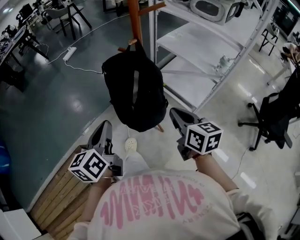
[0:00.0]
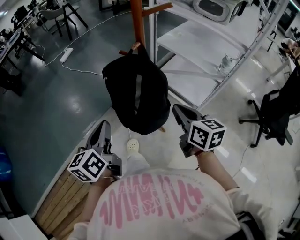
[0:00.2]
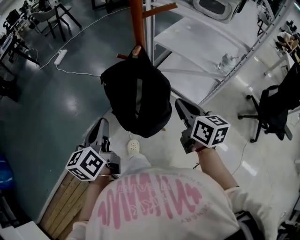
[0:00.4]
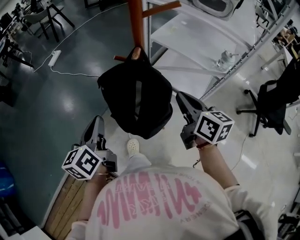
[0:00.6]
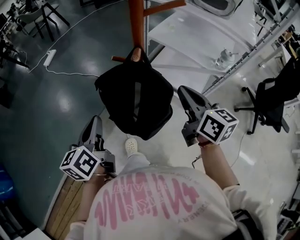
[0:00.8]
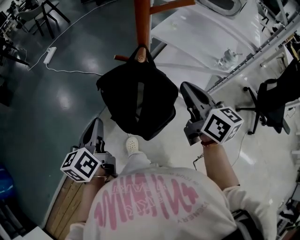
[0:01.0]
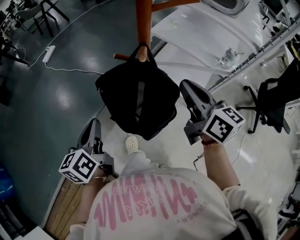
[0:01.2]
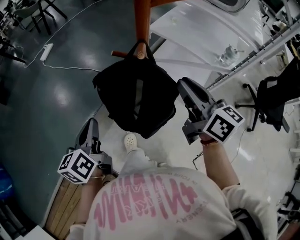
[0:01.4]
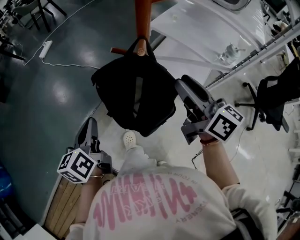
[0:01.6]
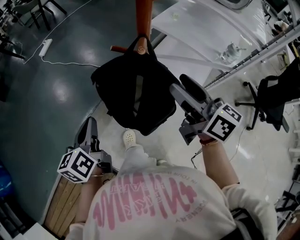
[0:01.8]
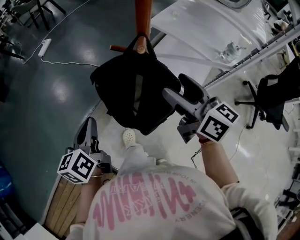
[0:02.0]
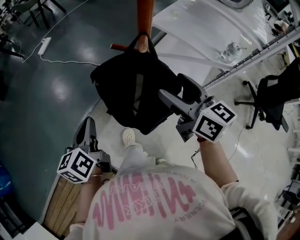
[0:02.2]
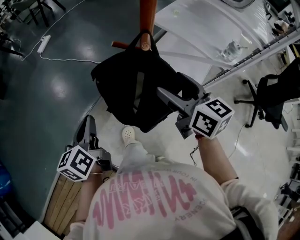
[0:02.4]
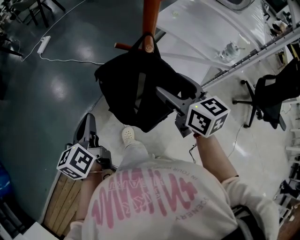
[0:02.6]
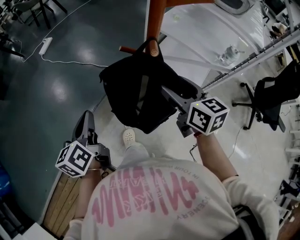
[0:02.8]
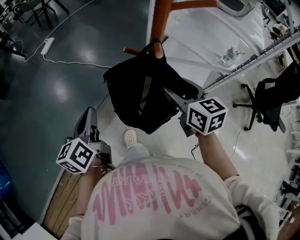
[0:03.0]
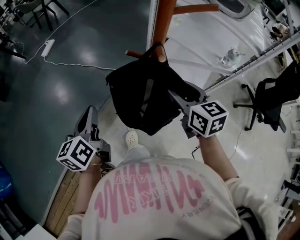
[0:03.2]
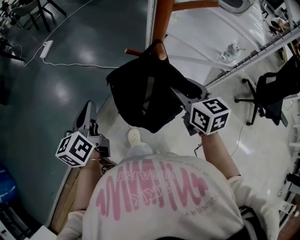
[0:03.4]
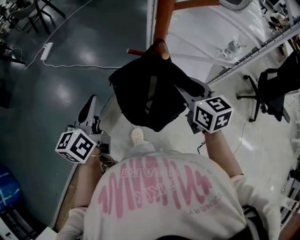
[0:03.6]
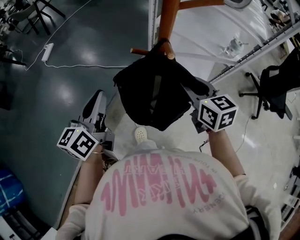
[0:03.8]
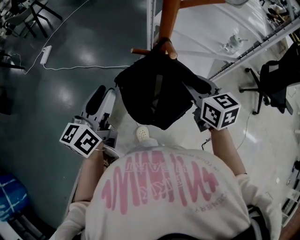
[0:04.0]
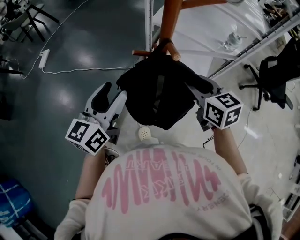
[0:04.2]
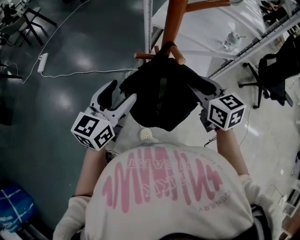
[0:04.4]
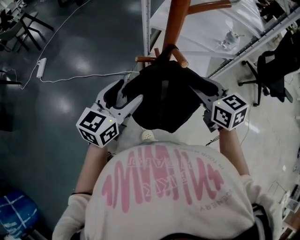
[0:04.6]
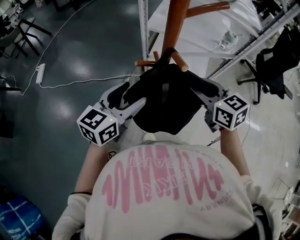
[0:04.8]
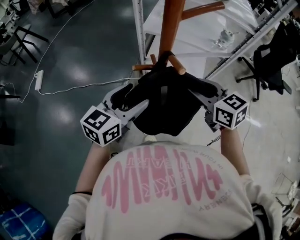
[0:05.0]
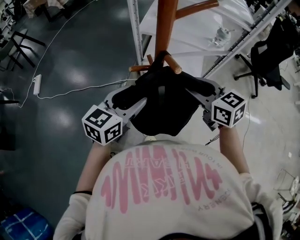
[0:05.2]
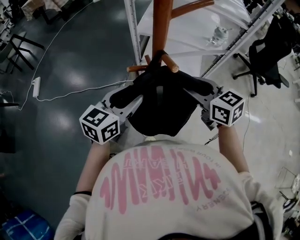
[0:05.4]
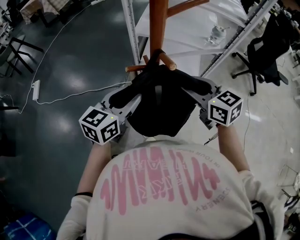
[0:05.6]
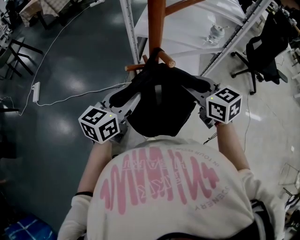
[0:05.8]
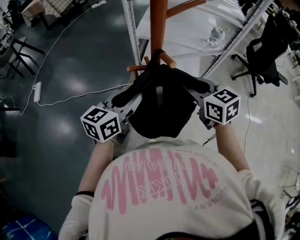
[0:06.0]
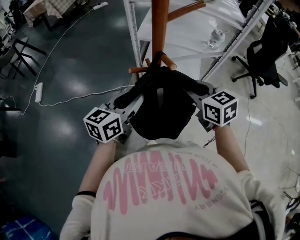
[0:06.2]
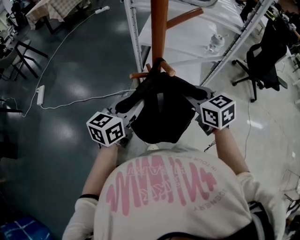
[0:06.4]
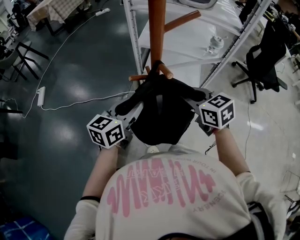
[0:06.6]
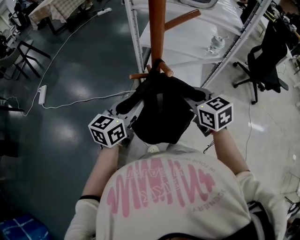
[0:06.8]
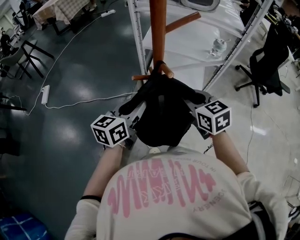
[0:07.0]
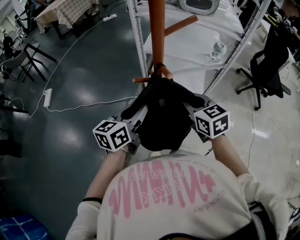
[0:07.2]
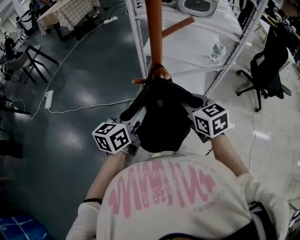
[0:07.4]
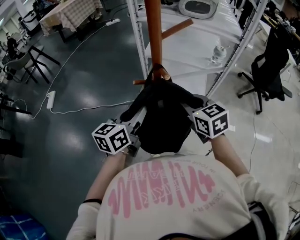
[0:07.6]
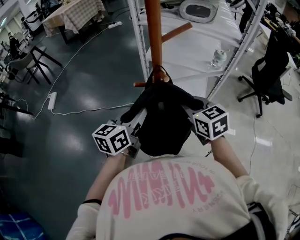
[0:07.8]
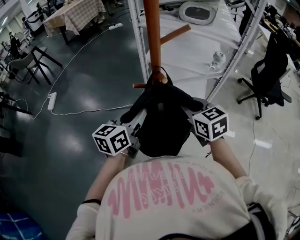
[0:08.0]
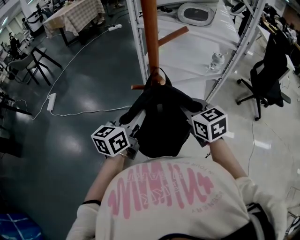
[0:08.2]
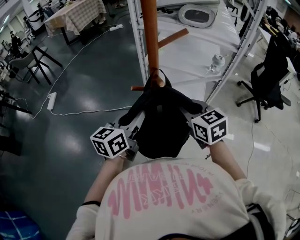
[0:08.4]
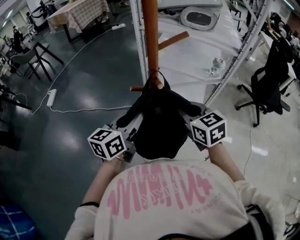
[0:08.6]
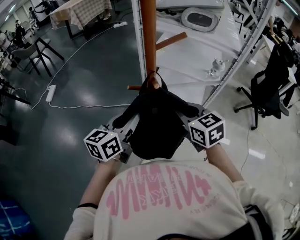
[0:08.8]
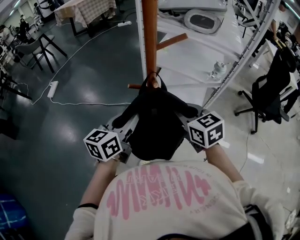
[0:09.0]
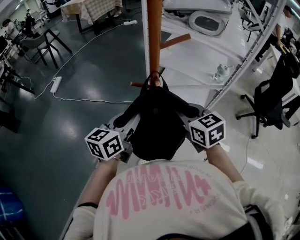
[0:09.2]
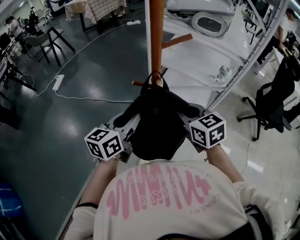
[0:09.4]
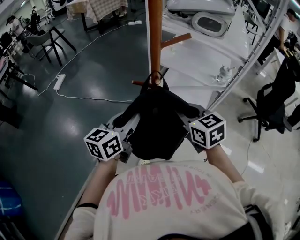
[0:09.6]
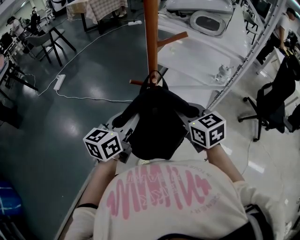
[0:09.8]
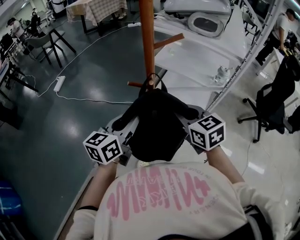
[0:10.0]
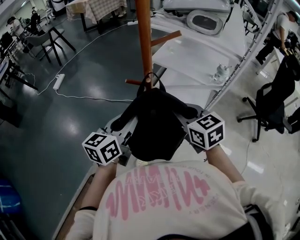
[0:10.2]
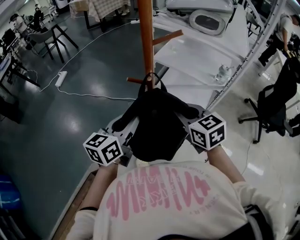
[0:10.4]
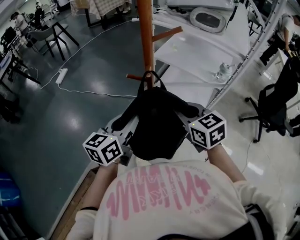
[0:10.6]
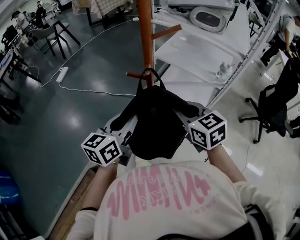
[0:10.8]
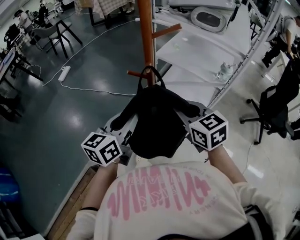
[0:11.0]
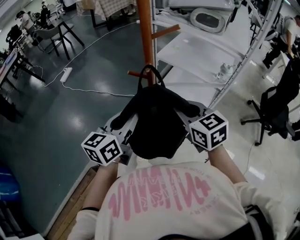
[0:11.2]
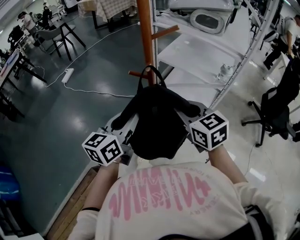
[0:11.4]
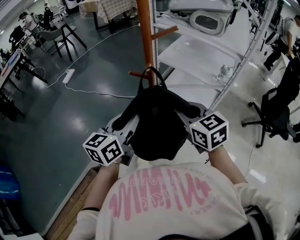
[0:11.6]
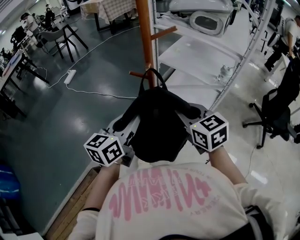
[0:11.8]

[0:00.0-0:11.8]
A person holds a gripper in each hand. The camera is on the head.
0:00.0 to 0:01.4: The left gripper shifts roughly 15 cm forward and to the left, while the right gripper goes some 15 cm forward and upward.
0:01.4 to 0:03.0: The right gripper goes some 5 cm downward, swivels some 20 degrees, and opens up.
0:03.0 to 0:04.4: The left gripper goes some 10 cm forward and to the right, changes its angle by some 50 degrees, and opens its fingers; the right gripper closes.
0:04.4 to 0:06.0: The left gripper changes place by roughly 5 cm, and closes up.
0:06.0 to 0:07.4: There are only small adjustments of the grippers.
0:07.4 to 0:08.8: The grippers move only a little.
0:08.8 to 0:10.4: The left gripper moves backward, roughly 5 cm.
0:10.4 to 0:11.8: The right gripper moves some 5 cm. The left gripper travels backward by some 5 cm.

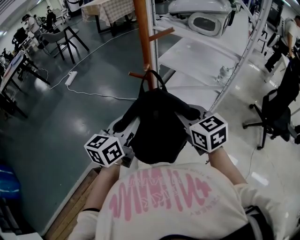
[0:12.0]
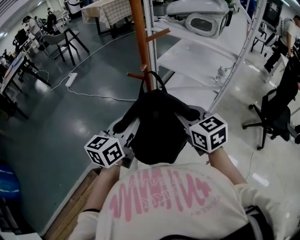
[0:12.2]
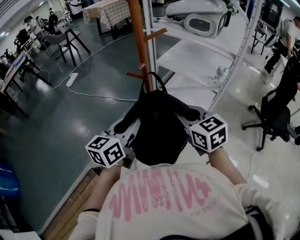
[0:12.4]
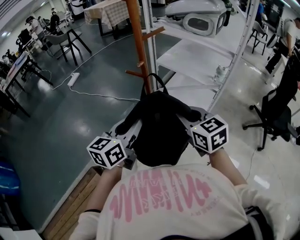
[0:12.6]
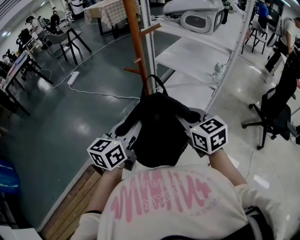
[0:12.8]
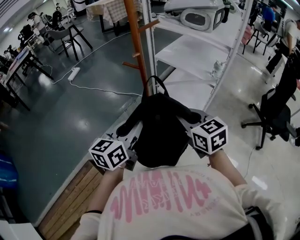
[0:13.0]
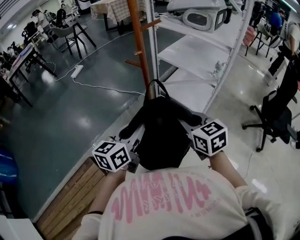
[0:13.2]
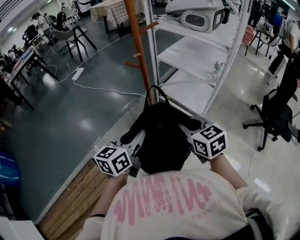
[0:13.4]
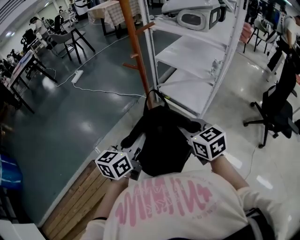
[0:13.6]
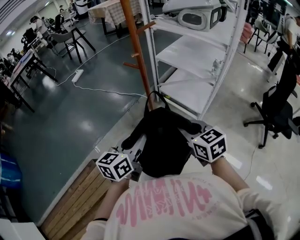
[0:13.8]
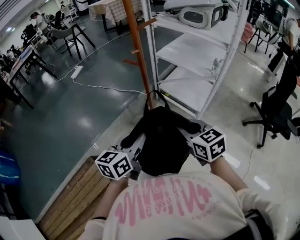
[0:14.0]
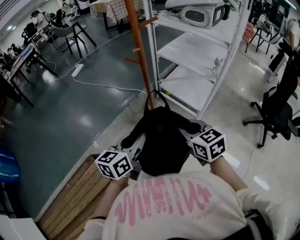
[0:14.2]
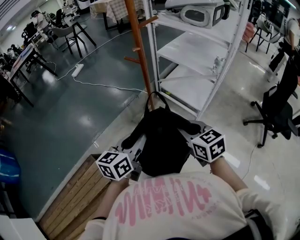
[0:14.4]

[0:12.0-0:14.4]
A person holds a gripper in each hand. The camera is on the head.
0:12.0 to 0:13.2: Both grippers travel together backward and to the right, approximately 10 cm.
0:13.2 to 0:14.4: The grippers both shift backward by some 5 cm.

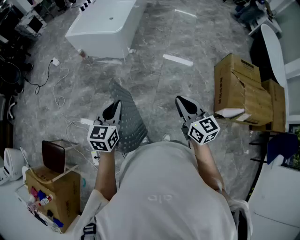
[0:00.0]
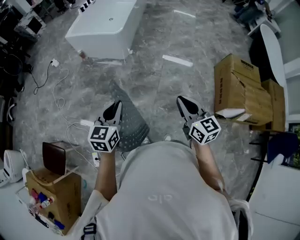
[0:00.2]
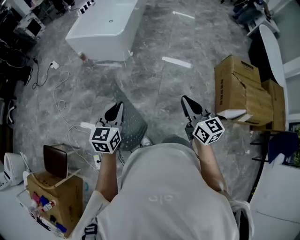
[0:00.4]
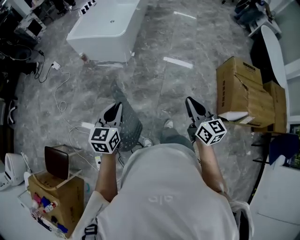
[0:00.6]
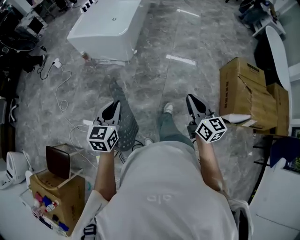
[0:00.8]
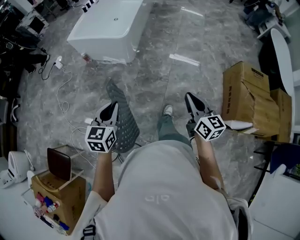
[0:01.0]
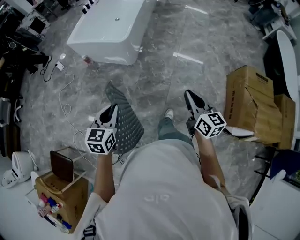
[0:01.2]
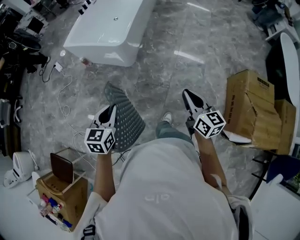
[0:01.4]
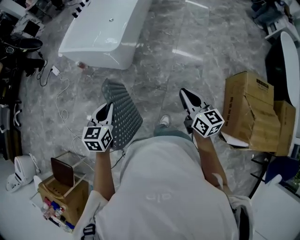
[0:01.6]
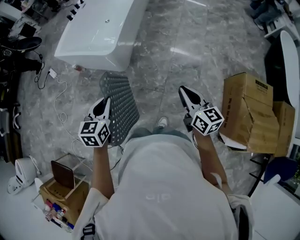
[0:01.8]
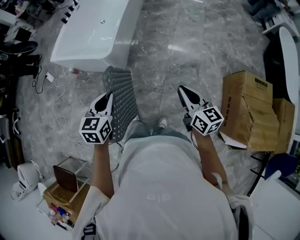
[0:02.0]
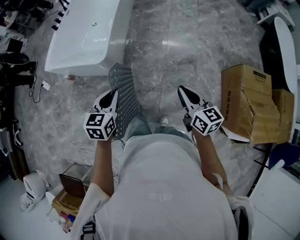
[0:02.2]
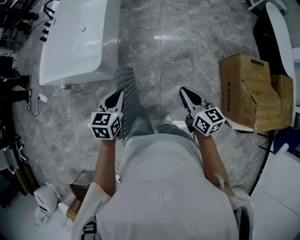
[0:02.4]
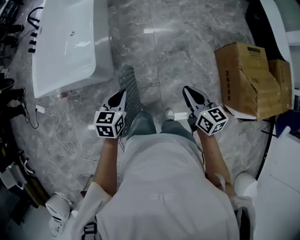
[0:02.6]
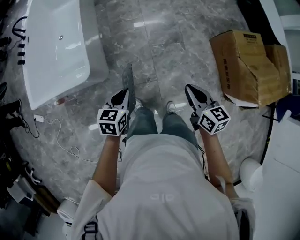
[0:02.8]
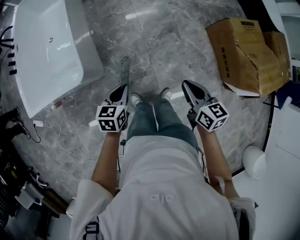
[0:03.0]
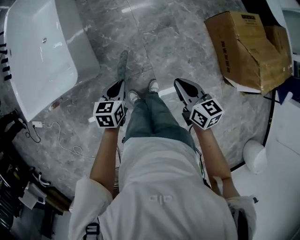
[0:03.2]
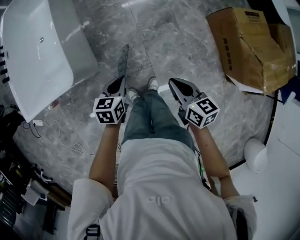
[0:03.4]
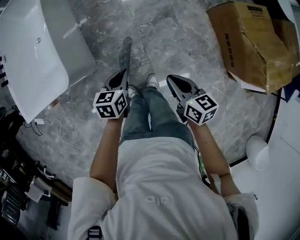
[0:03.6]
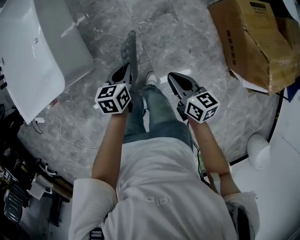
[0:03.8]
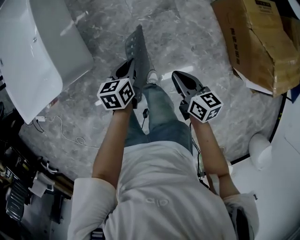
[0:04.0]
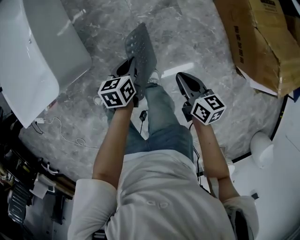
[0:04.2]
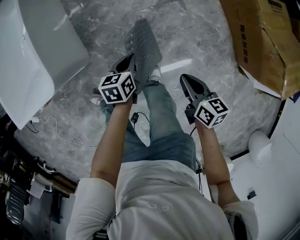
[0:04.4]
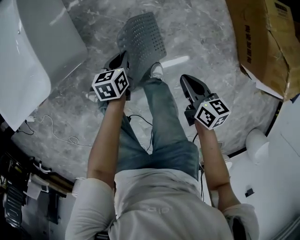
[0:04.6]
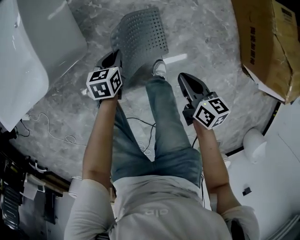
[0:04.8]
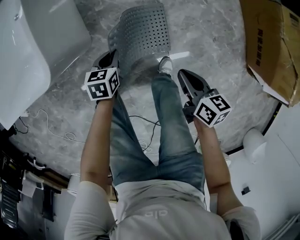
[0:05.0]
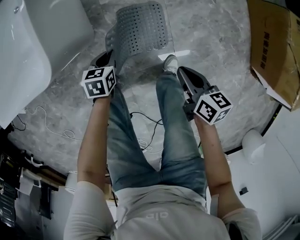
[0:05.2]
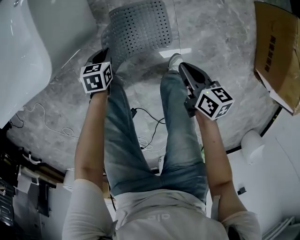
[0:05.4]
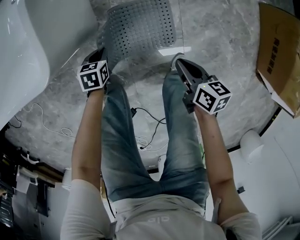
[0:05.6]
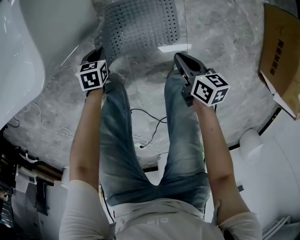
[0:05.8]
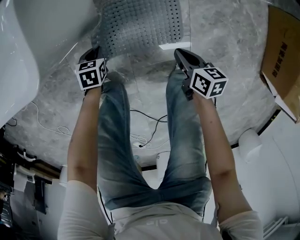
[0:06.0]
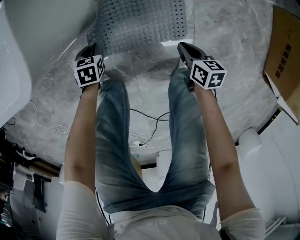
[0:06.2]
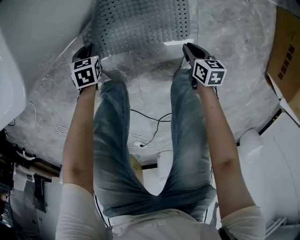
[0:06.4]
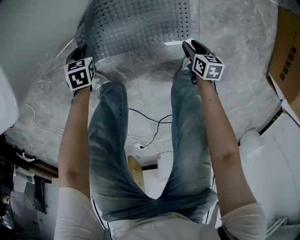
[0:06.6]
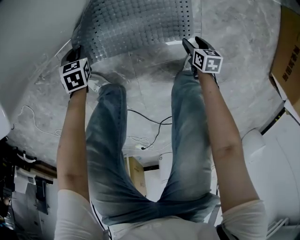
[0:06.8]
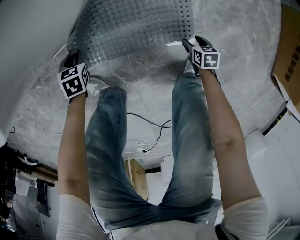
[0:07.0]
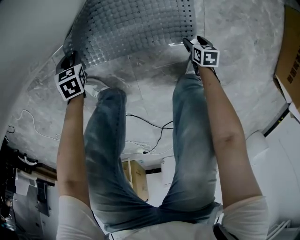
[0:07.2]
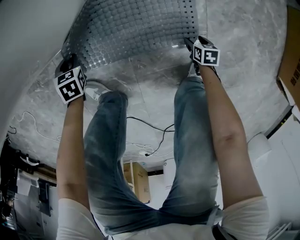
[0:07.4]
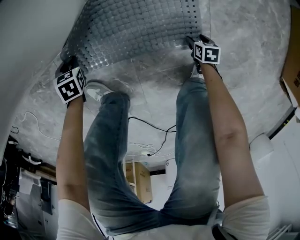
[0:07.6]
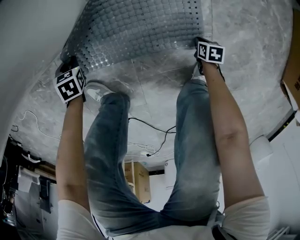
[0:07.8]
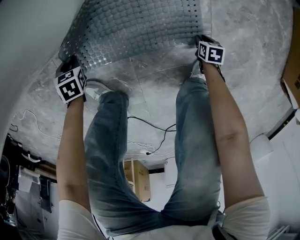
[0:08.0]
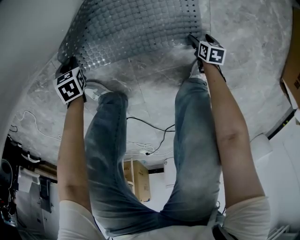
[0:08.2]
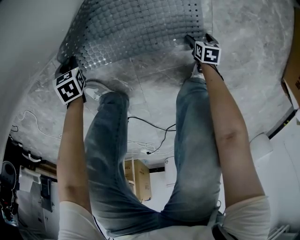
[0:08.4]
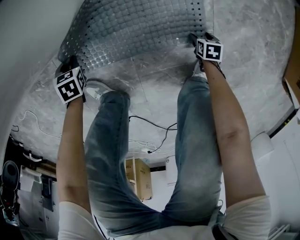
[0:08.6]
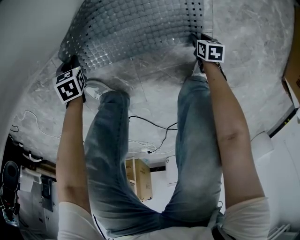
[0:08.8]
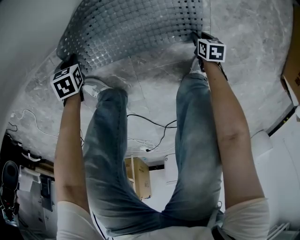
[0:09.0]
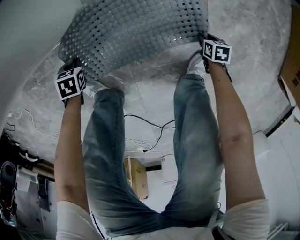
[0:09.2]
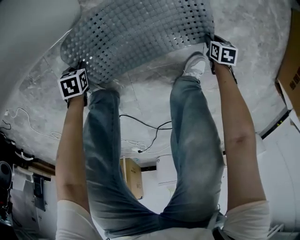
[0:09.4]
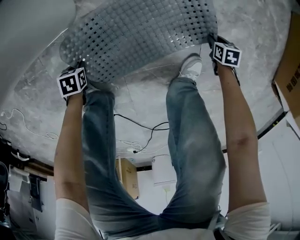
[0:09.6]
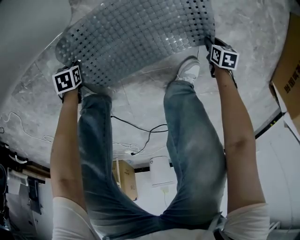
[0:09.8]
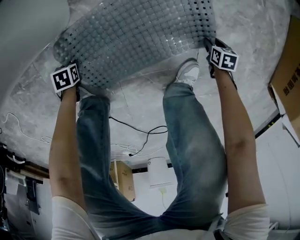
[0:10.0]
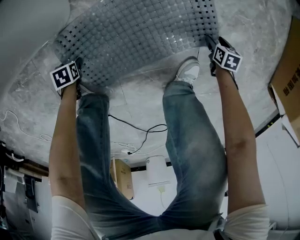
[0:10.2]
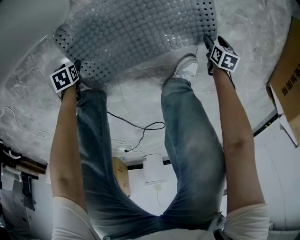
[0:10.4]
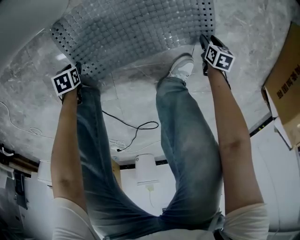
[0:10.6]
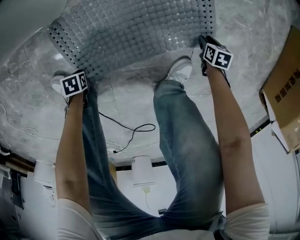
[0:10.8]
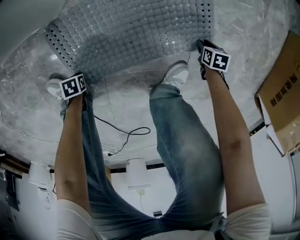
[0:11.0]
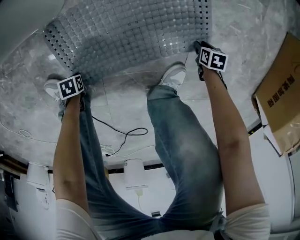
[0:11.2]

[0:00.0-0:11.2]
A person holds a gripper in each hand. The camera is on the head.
0:00.0 to 0:01.6: The two grippers go approximately 40 cm forward.
0:01.6 to 0:03.2: The right gripper ends up roughly 25 cm from where it was, and turns by roughly 30 degrees, while the left gripper shifts by some 40 cm, and rotates approximately 40 degrees.
0:03.2 to 0:04.8: Both grippers move downward, approximately 35 cm.
0:04.8 to 0:06.4: The right gripper shifts roughly 40 cm downward, and swivels roughly 20 degrees, while the left gripper travels downward and to the left by about 50 cm, and changes its angle by about 20 degrees.
0:06.4 to 0:08.0: The right gripper is displaced downward by approximately 25 cm, and opens, then closes once more; the left gripper moves downward, some 10 cm.
0:08.0 to 0:09.6: The right gripper shifts by approximately 10 cm, and opens and closes again. Meanwhile the left gripper moves roughly 10 cm, and swivels some 20 degrees.
0:09.6 to 0:11.2: The right gripper opens, then closes again, while the left gripper changes place by approximately 15 cm, changes its angle by some 20 degrees, and opens, then closes again.
